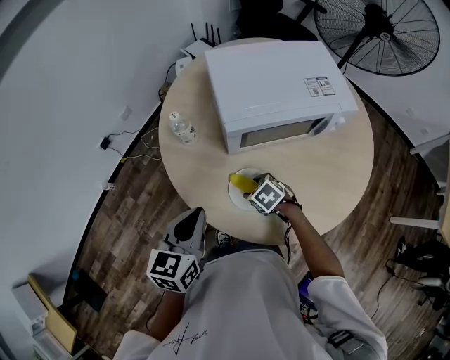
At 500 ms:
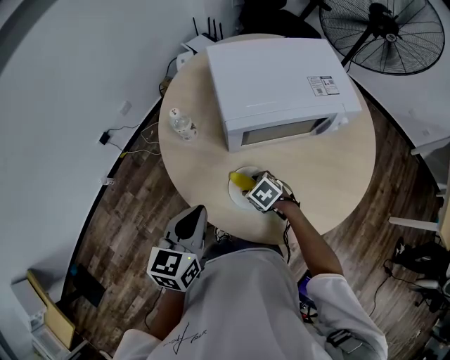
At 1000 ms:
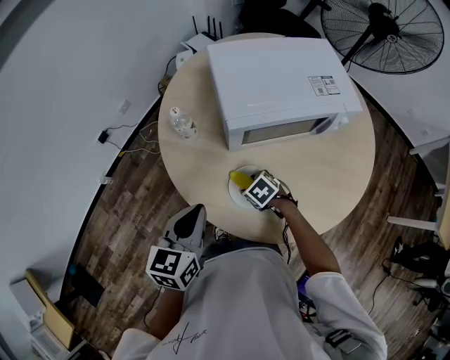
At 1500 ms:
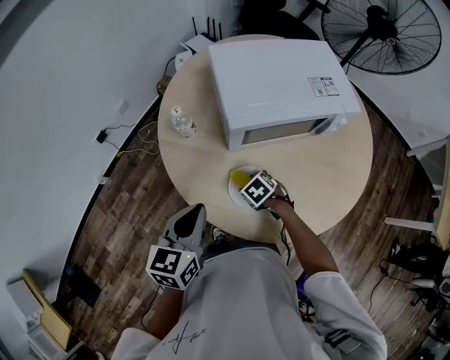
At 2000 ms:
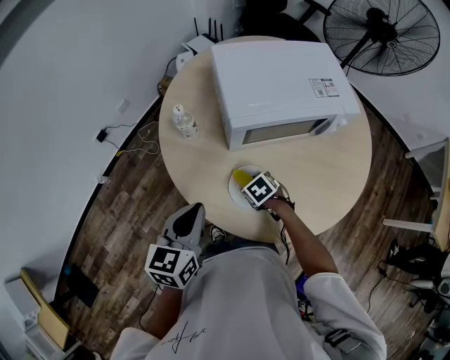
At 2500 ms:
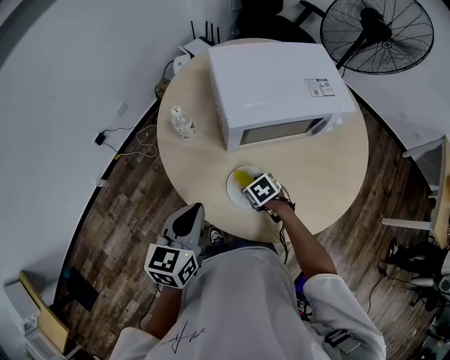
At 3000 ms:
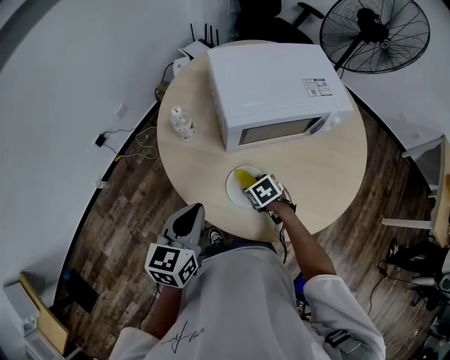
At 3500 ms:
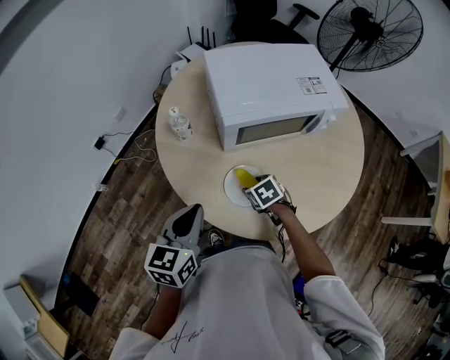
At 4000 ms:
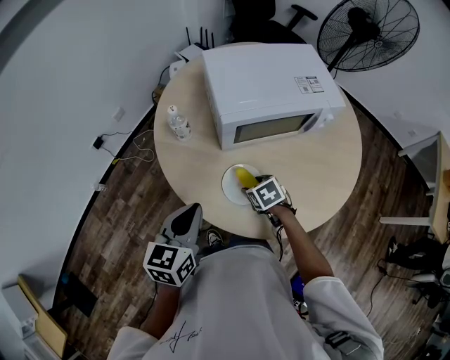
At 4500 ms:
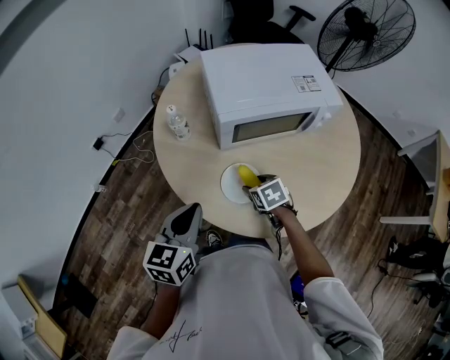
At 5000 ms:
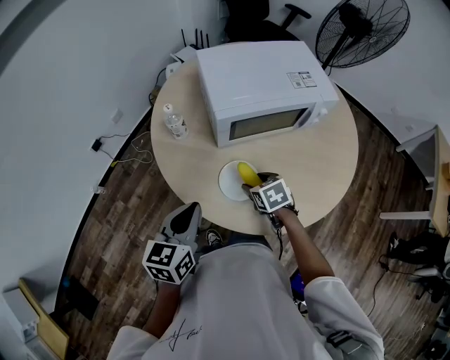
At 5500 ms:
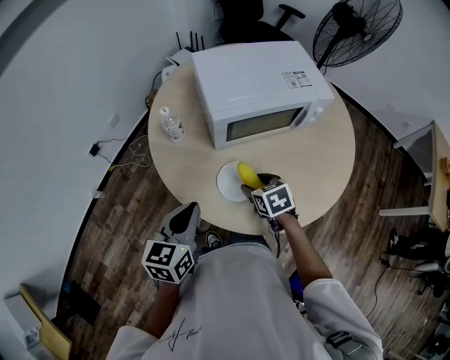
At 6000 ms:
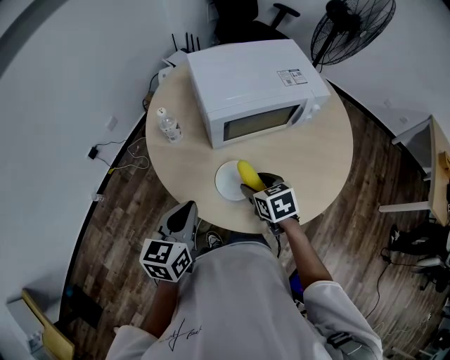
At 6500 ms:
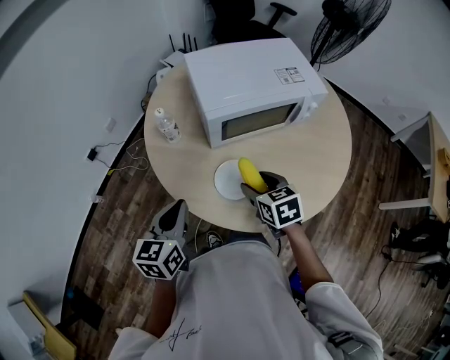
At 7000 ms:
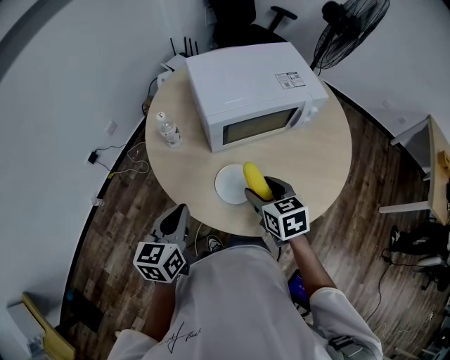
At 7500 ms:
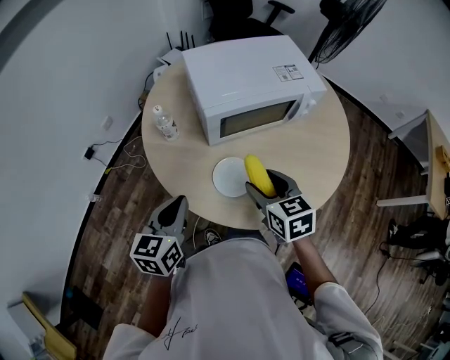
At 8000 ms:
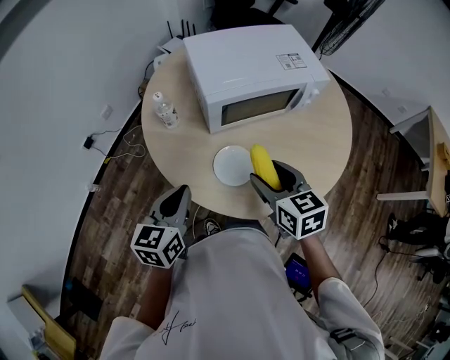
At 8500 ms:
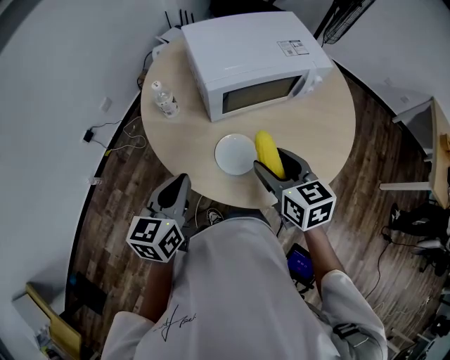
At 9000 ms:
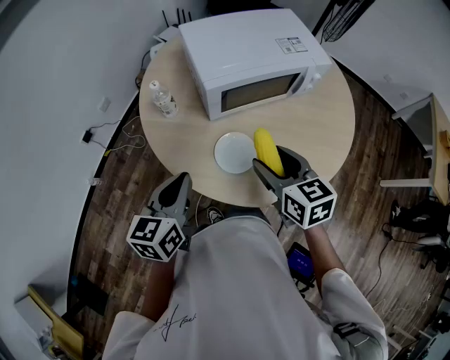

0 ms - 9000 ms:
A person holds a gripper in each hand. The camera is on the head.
0 ms - 2000 ms: There are only small adjustments of the grippers.
2000 ms - 4500 ms: The right gripper moves upward, about 5 cm.
4500 ms - 7000 ms: The right gripper shifts roughly 15 cm upward, and turns by about 20 degrees.
7000 ms - 9000 ms: The right gripper goes approximately 5 cm upward.

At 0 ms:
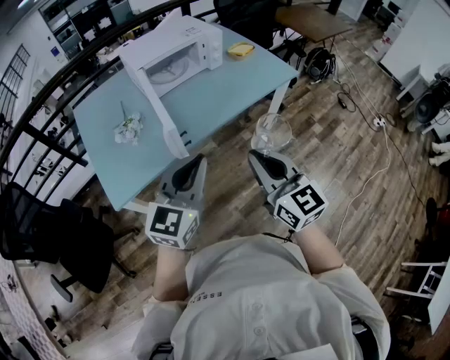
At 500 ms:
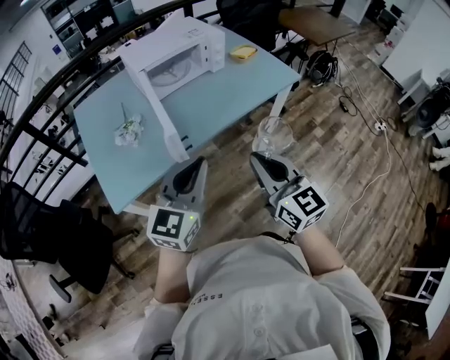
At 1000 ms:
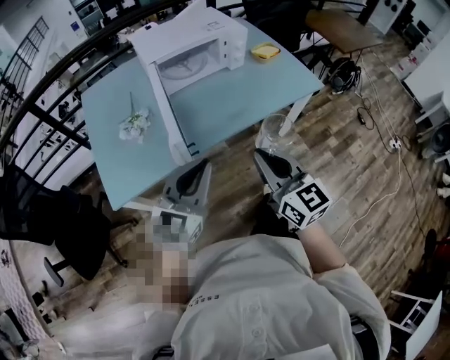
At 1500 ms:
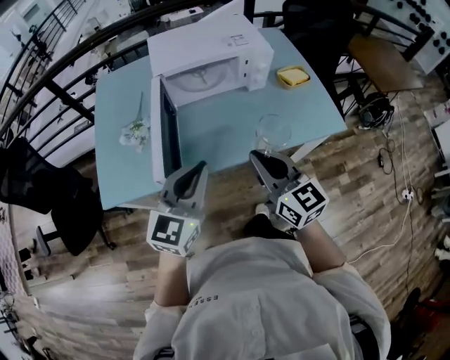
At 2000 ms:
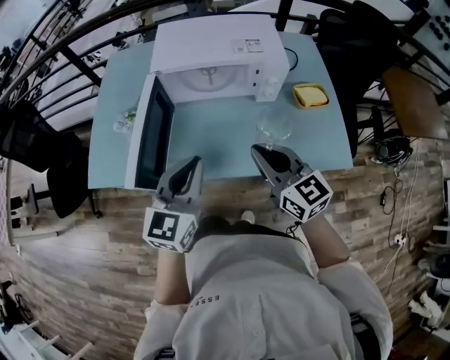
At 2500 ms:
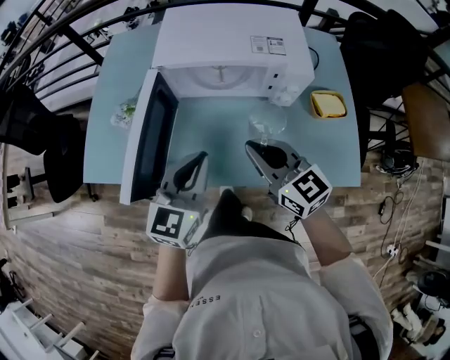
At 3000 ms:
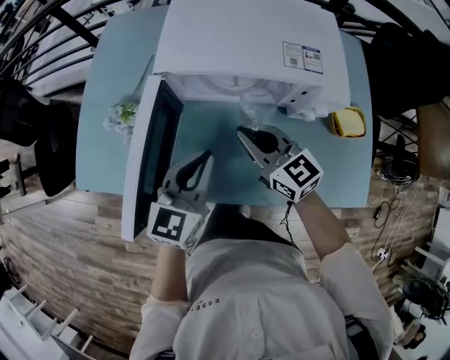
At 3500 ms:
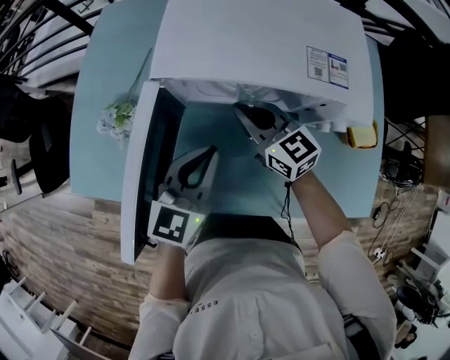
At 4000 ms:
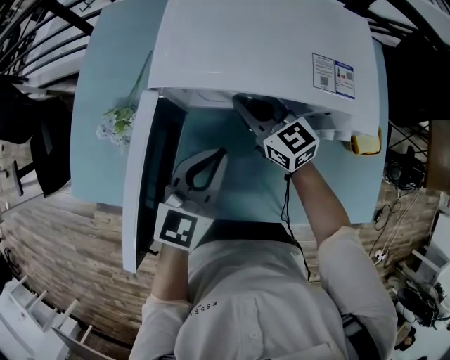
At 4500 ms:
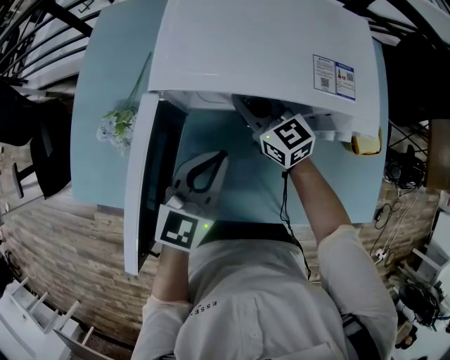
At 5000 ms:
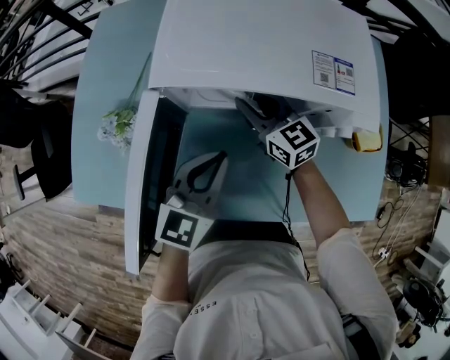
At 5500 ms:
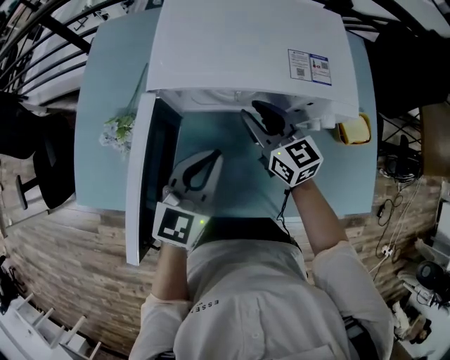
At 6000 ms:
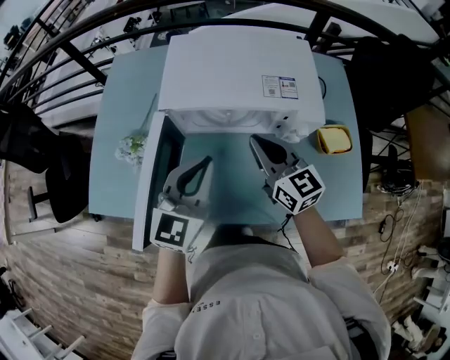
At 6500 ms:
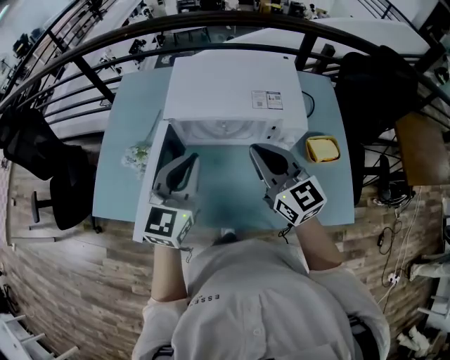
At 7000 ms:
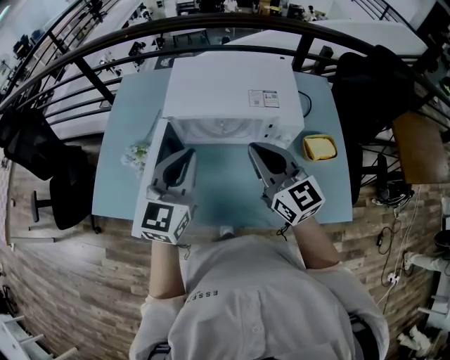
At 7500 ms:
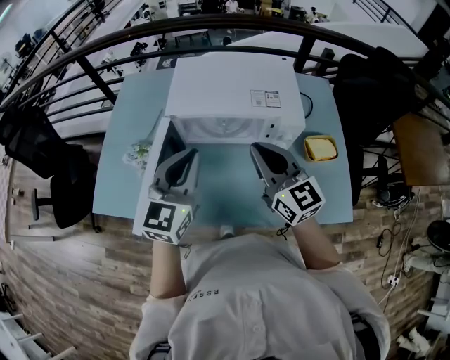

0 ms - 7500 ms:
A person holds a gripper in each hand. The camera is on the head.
0 ms - 2000 ms: The left gripper moves about 30 cm, and changes its angle by approximately 40 degrees, while the right gripper shifts by roughly 40 cm, and rotates about 40 degrees.
2000 ms - 4000 ms: The left gripper travels forward and downward by approximately 25 cm. Meanwhile the right gripper moves forward and downward, about 35 cm.
4000 ms - 5500 ms: The right gripper is displaced to the right by about 5 cm, and opens up.
5500 ms - 7500 ms: The right gripper travels upward and backward by roughly 25 cm, and closes up. Meanwhile the left gripper goes some 15 cm upward.

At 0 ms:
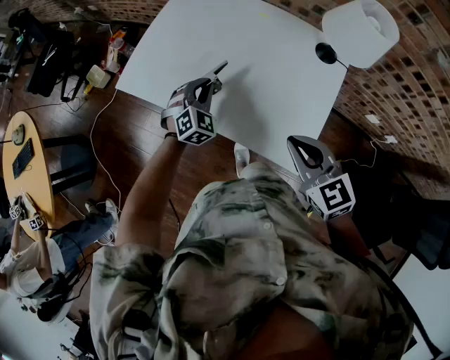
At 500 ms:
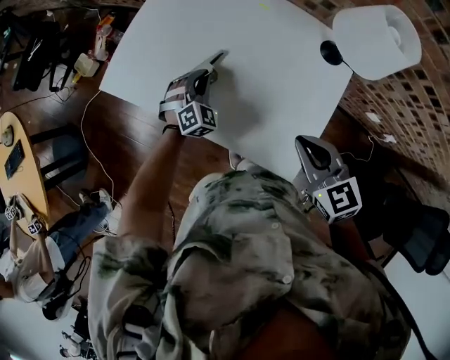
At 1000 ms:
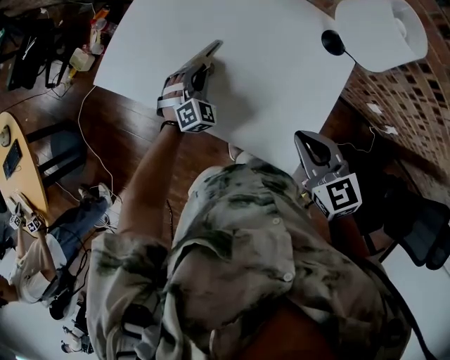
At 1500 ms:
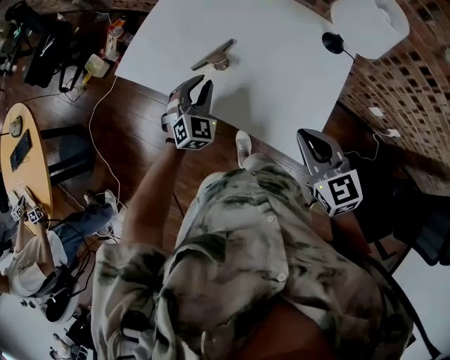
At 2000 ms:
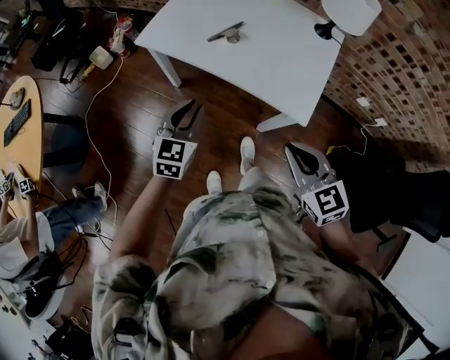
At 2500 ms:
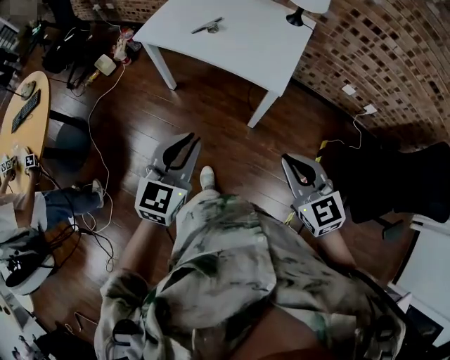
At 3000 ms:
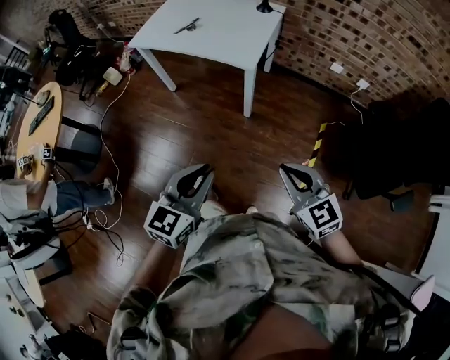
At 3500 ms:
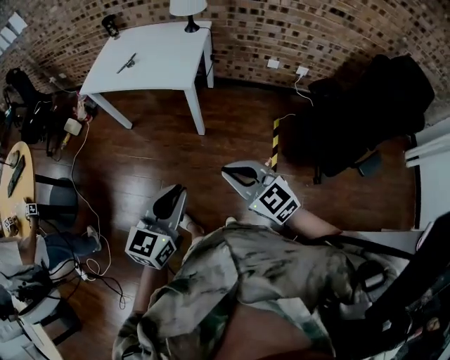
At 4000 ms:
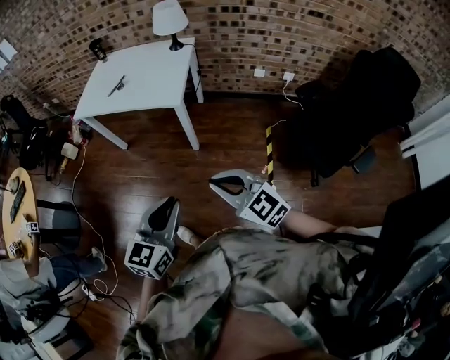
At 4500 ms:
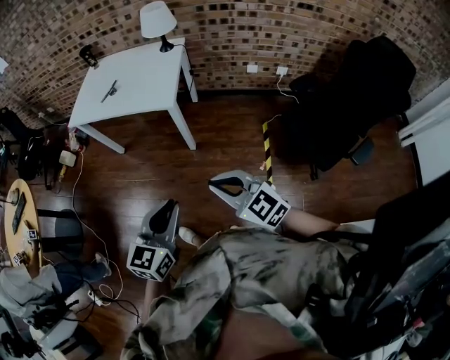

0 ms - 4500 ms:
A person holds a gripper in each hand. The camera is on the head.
0 ms - 2000 ms: The left gripper shifts some 30 cm backward, to the left and upward, and changes its angle by some 40 degrees. The right gripper is displaced backward and to the left by approximately 20 cm.
2000 ms - 4500 ms: Both grippers are carried backward and to the right, about 50 cm. The left gripper swivels approximately 20 degrees.

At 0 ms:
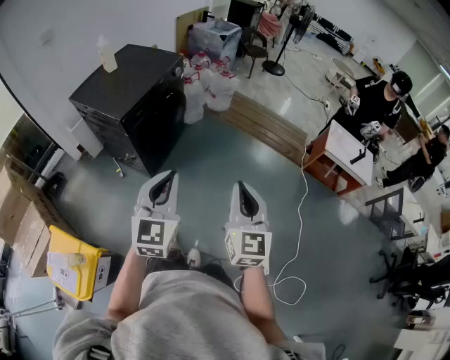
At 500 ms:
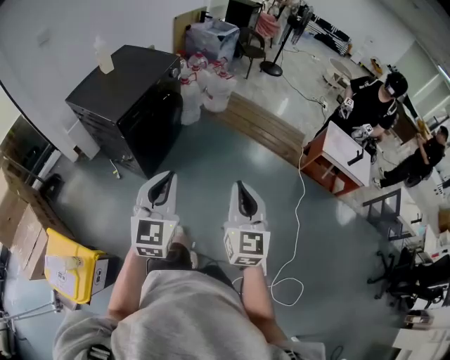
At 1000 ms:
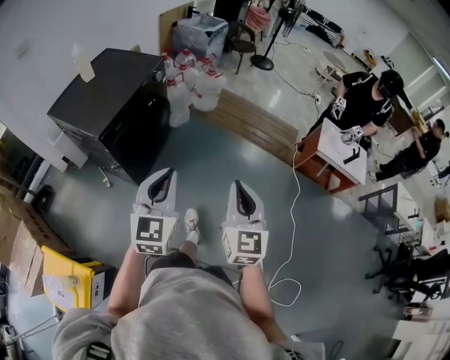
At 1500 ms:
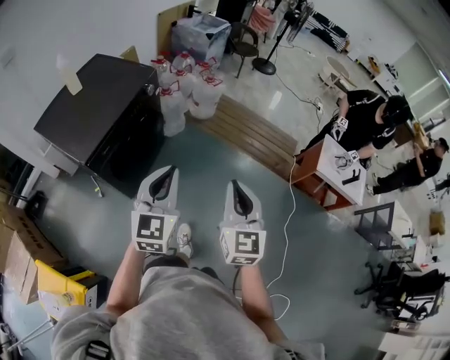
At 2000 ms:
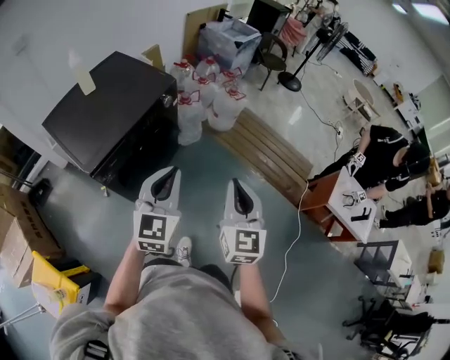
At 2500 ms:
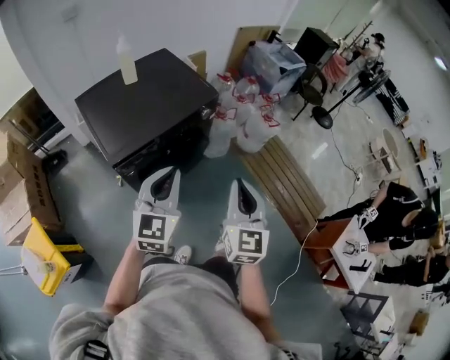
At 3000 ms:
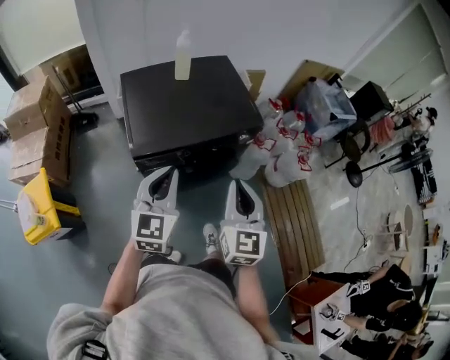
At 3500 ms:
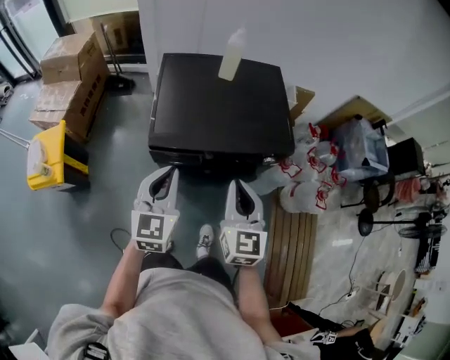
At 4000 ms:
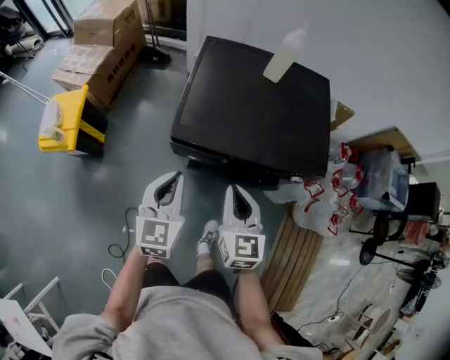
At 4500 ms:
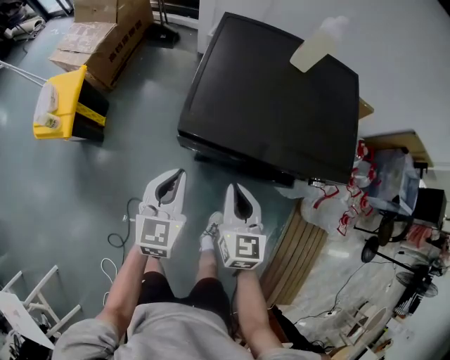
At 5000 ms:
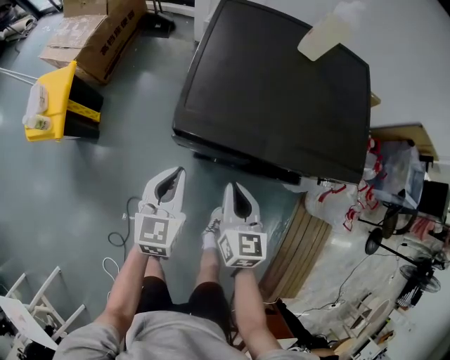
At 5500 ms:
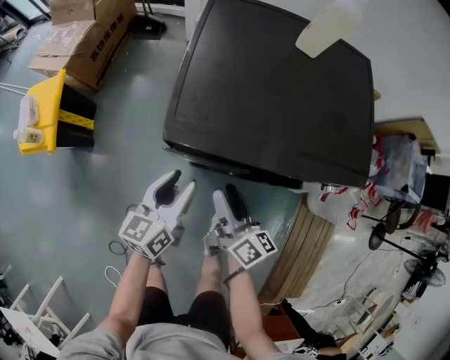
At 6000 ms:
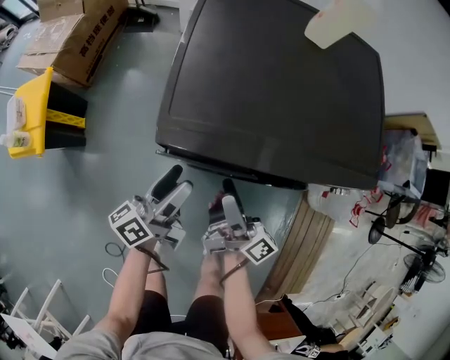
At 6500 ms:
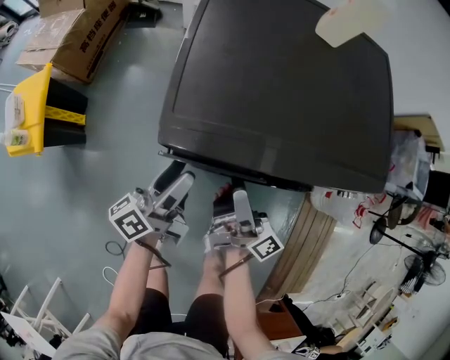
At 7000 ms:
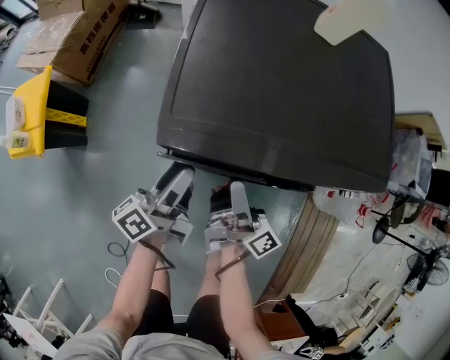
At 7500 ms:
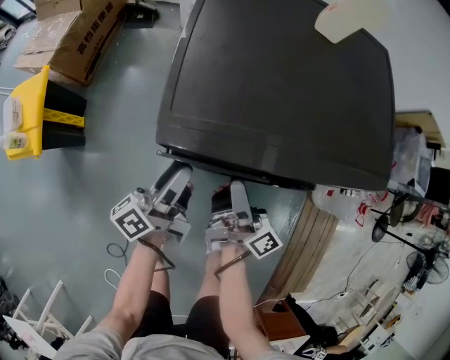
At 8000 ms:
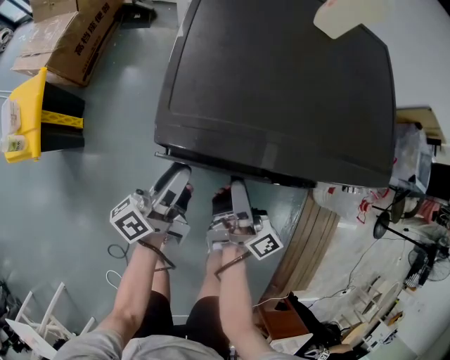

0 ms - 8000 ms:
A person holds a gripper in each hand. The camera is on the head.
0 ms - 2000 ms: Both grippers move forward, roughly 40 cm.
2000 ms - 4000 ms: The right gripper changes place by some 40 cm, and swivels some 70 degrees. The left gripper changes place by roughly 30 cm, and turns by some 70 degrees.
4000 ms - 6000 ms: The grippers both shift downward by some 20 cm. The right gripper rolls clockwise, seen from behind, by roughly 70 degrees, and opens; the left gripper rolls counterclockwise, seen from behind, by roughly 60 degrees, and opens up.
6000 ms - 8000 ms: The left gripper closes up. Meanwhile the right gripper closes.
